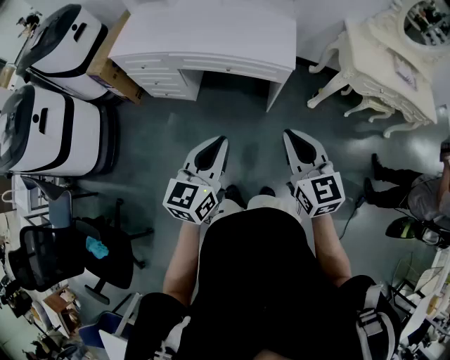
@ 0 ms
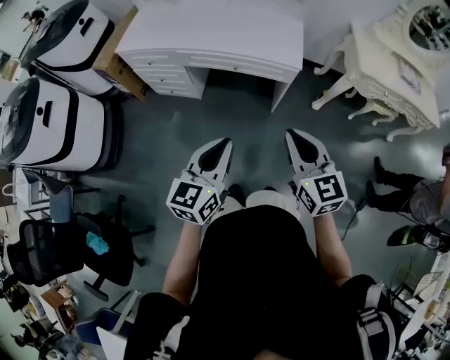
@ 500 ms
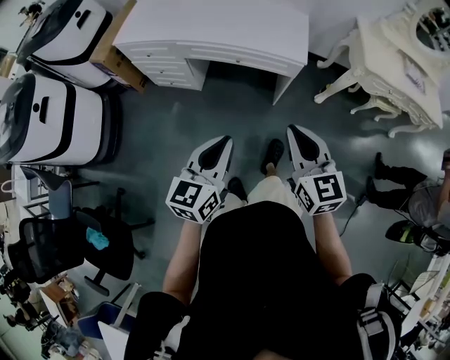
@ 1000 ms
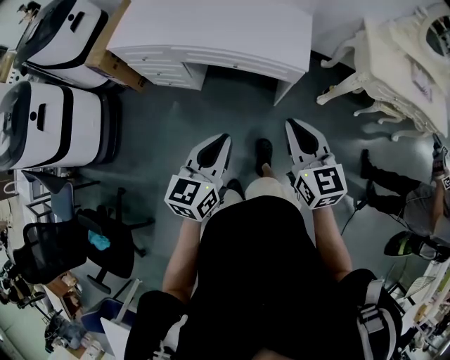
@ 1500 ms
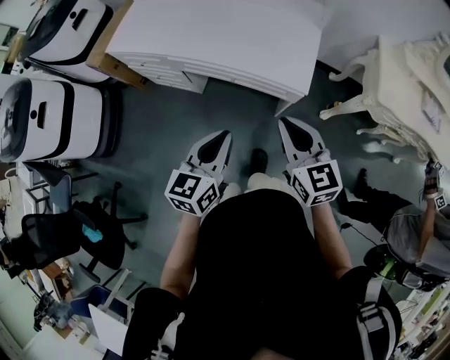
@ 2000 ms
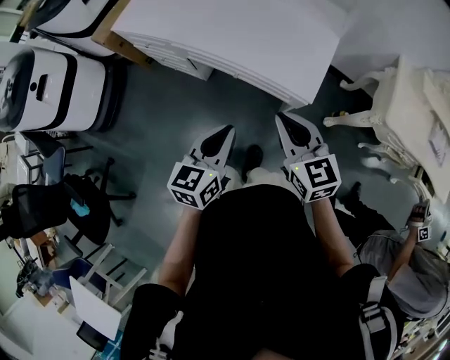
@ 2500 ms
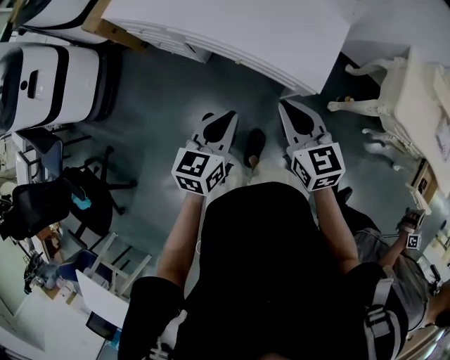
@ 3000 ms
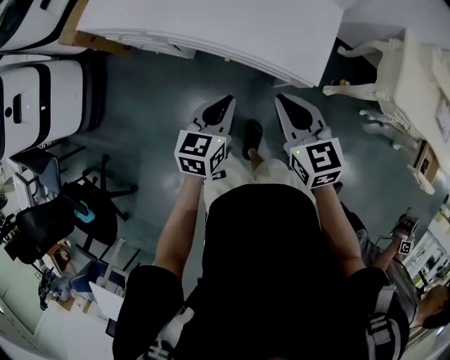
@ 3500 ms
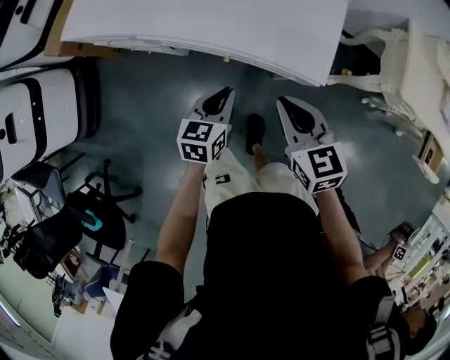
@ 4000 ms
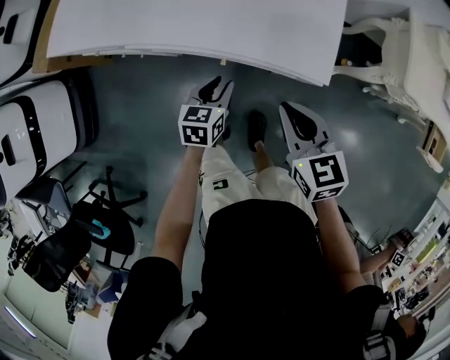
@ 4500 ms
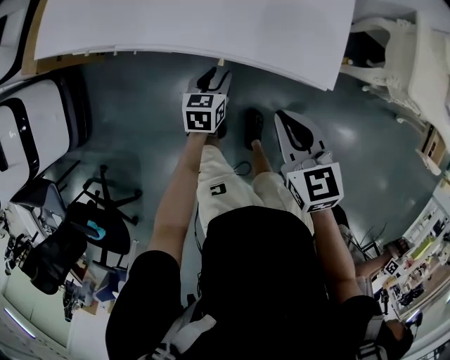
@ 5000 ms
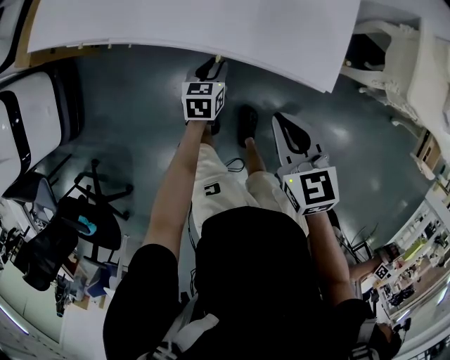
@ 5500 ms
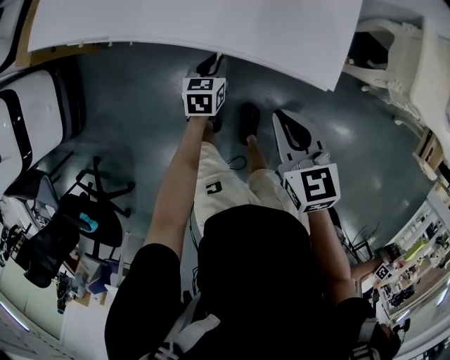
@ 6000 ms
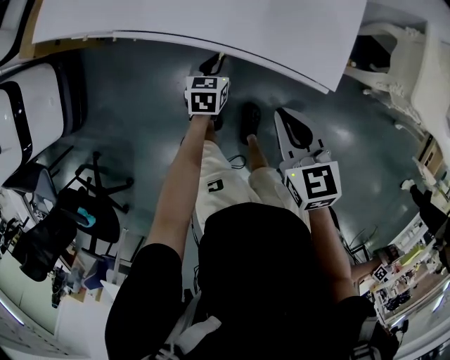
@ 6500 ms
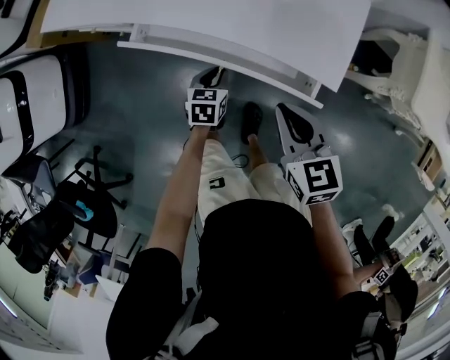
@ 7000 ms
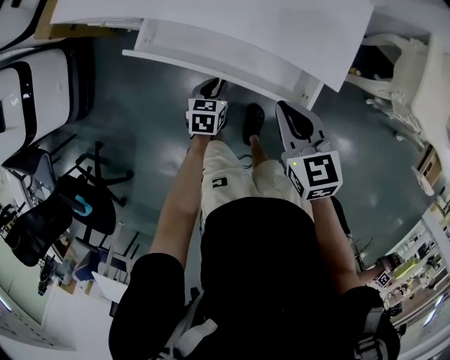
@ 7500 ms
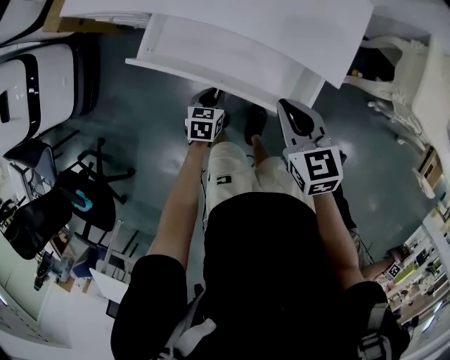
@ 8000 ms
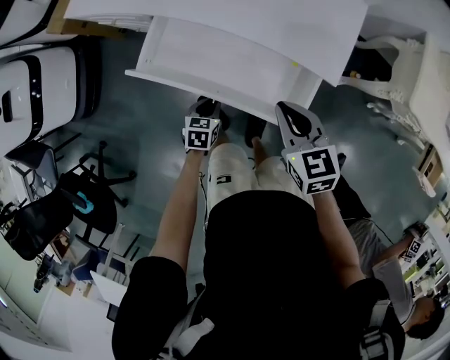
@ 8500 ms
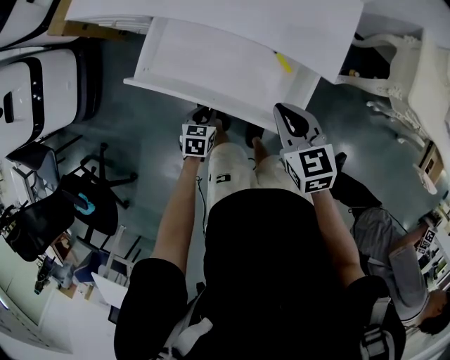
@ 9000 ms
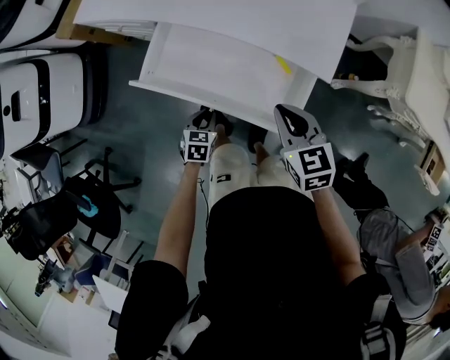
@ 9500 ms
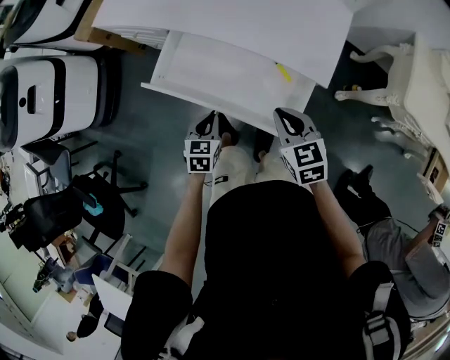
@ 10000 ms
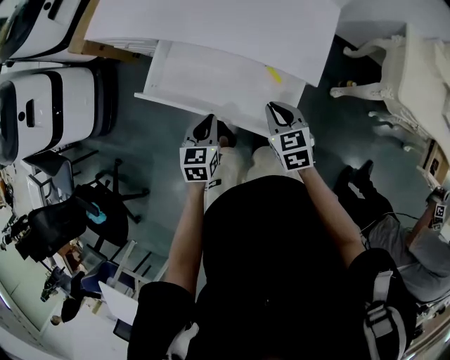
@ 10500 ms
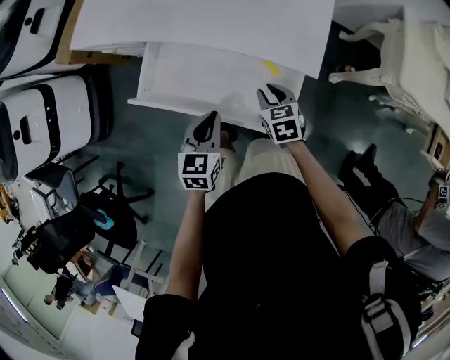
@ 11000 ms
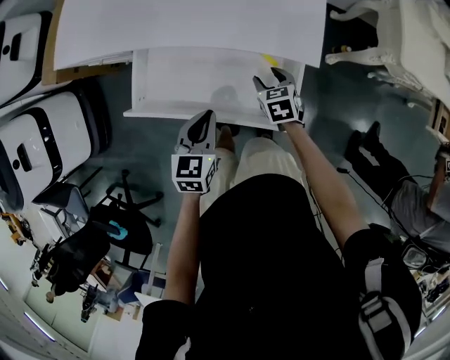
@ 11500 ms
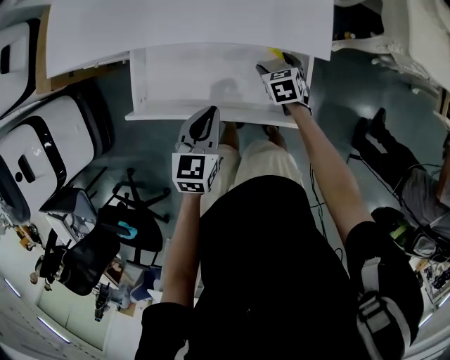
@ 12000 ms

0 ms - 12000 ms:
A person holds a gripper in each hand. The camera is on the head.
0 ms - 2000 ms: The two grippers go some 25 cm forward.
2000 ms - 4000 ms: The right gripper heads forward and downward, covering some 20 cm; the left gripper moves downward and forward, about 30 cm.
4000 ms - 6000 ms: The right gripper moves downward, roughly 10 cm; the left gripper shifts about 20 cm downward and forward.
6000 ms - 8000 ms: The left gripper goes some 15 cm backward.
8000 ms - 10000 ms: The right gripper is displaced backward by approximately 5 cm; the left gripper moves upward and backward, some 15 cm.
10000 ms - 12000 ms: The left gripper moves forward and upward, approximately 10 cm, and changes its angle by about 20 degrees. Meanwhile the right gripper travels downward and forward by some 25 cm, changes its angle by some 30 degrees, and opens.

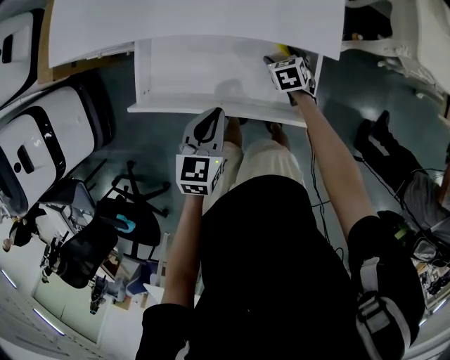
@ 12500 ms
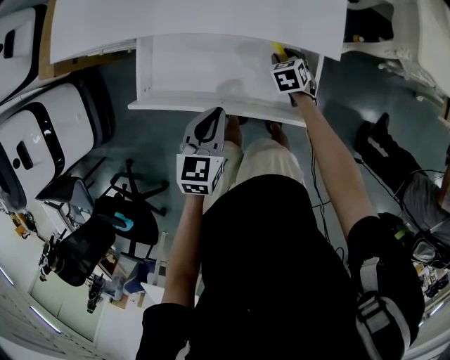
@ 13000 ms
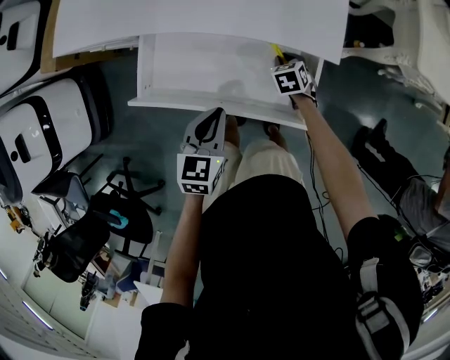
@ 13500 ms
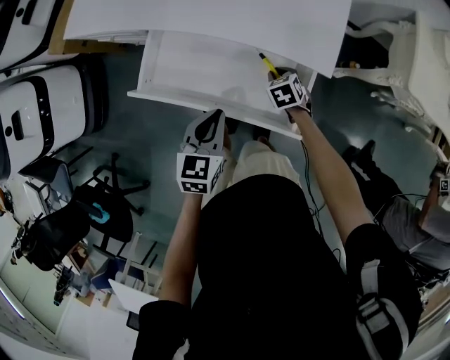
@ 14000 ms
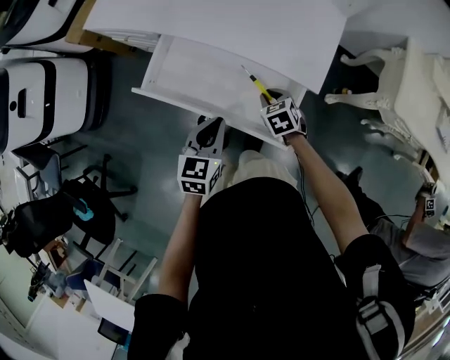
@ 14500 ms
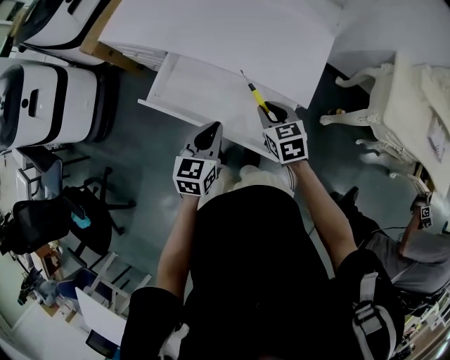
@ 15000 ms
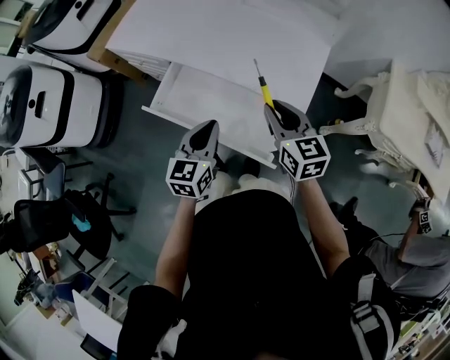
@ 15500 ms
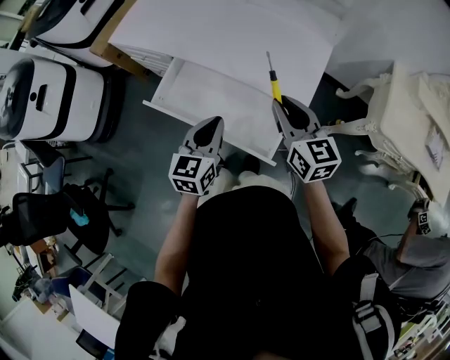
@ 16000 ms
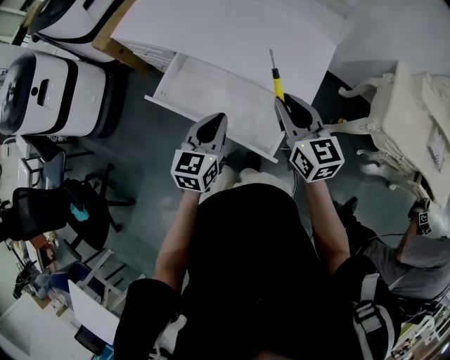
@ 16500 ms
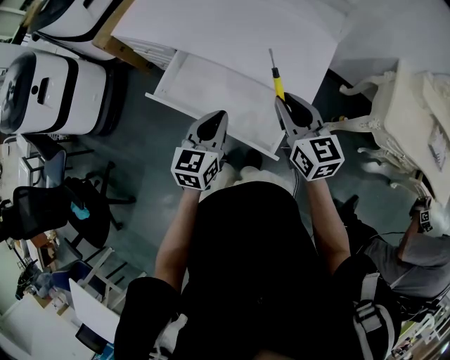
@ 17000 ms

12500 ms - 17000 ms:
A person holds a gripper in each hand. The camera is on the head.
12500 ms - 14500 ms: The right gripper heads upward and backward, covering roughly 15 cm, changes its angle by roughly 20 degrees, and closes up, while the left gripper moves upward, some 5 cm.
14500 ms - 17000 ms: The right gripper shifts approximately 30 cm upward, and tips its fingers upward by about 40 degrees. The left gripper goes approximately 10 cm upward.

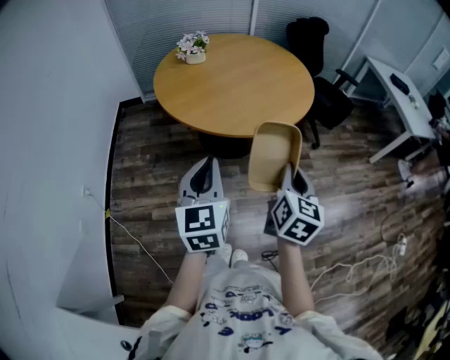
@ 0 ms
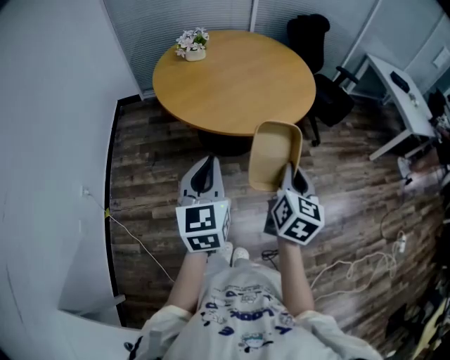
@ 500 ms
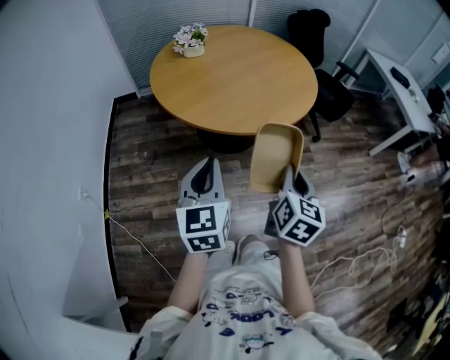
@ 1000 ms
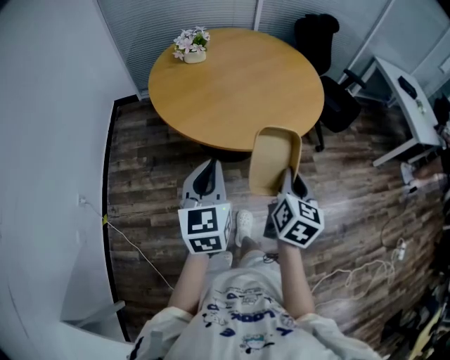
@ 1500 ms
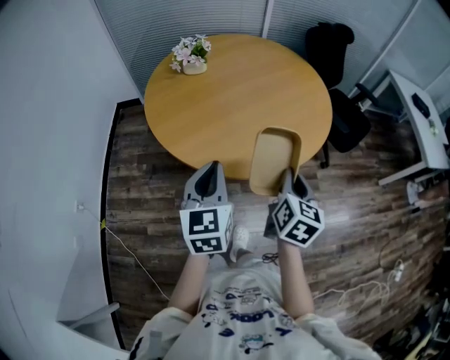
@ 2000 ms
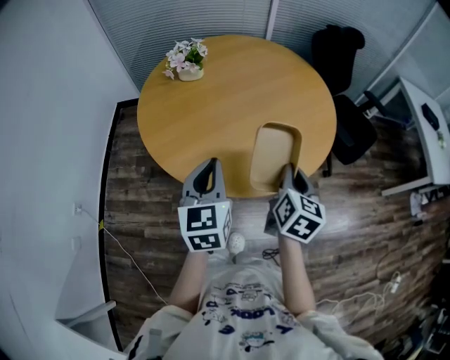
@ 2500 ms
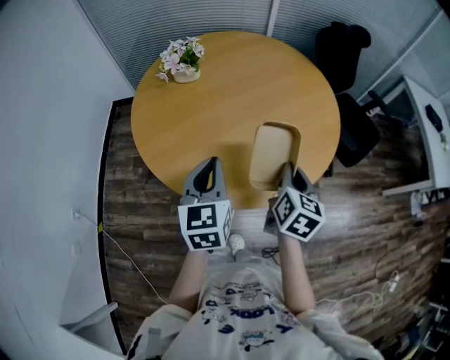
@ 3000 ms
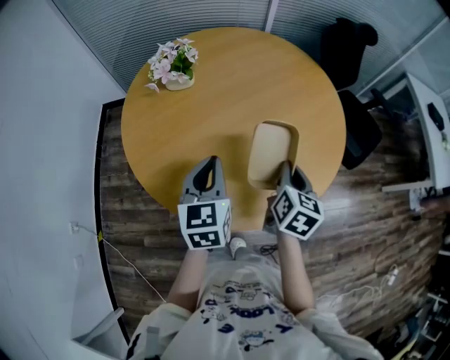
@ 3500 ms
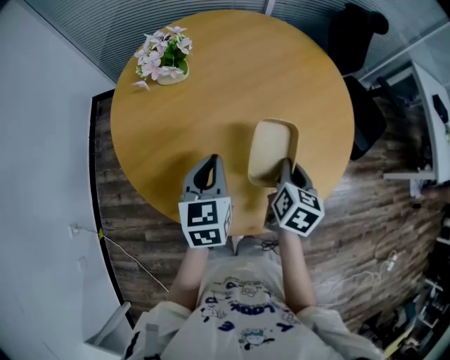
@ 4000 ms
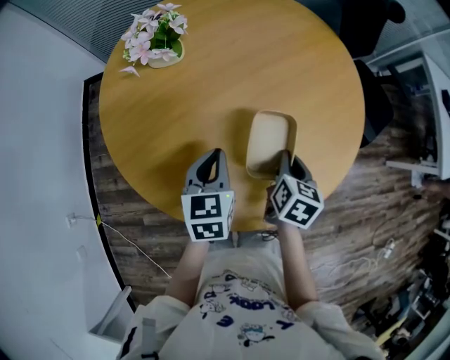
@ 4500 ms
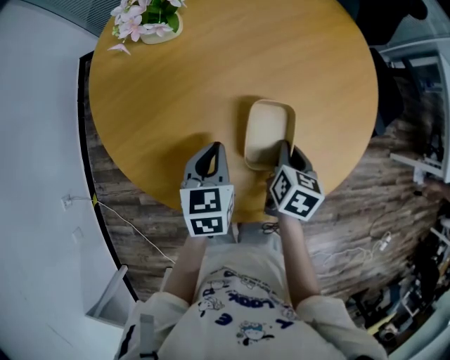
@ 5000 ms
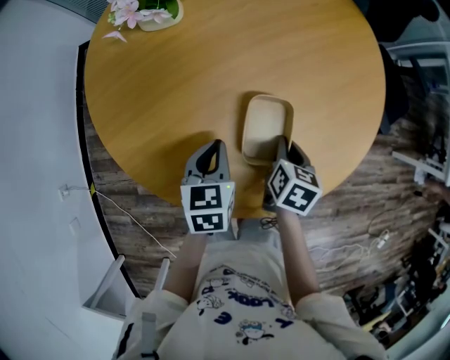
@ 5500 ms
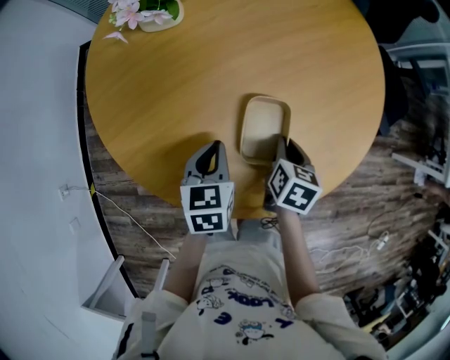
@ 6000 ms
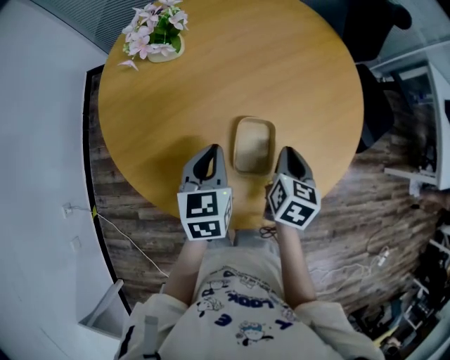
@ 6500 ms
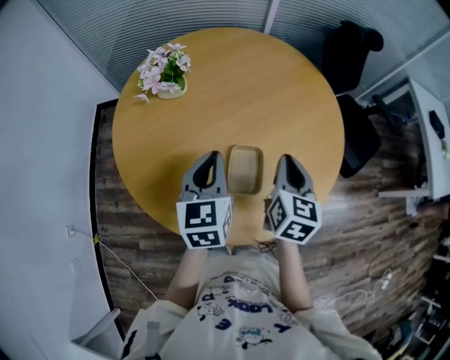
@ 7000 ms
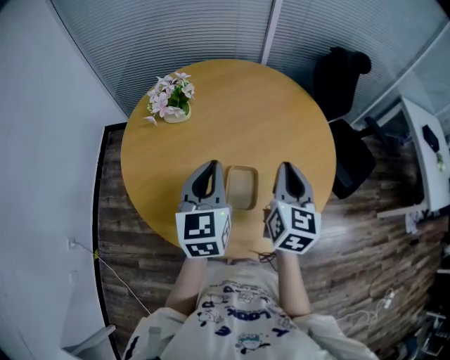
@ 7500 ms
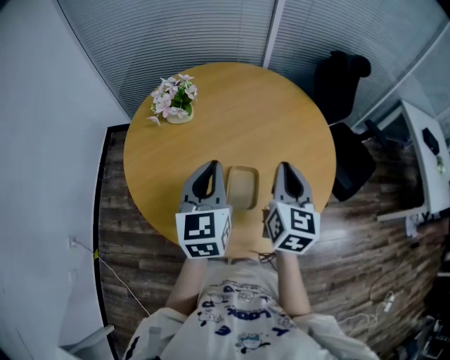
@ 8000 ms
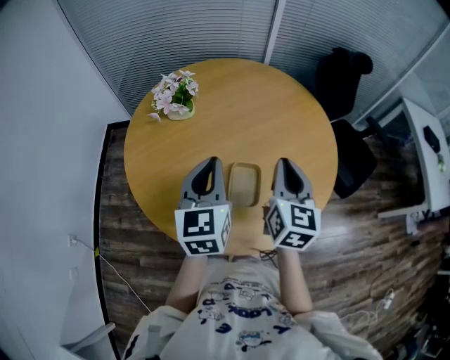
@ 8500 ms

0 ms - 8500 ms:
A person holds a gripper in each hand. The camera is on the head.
0 ms - 2000 ms: Both grippers travel together forward, approximately 25 cm.
2000 ms - 4000 ms: The grippers both shift forward by some 30 cm.
4000 ms - 6500 ms: The left gripper goes downward and returns, some 15 cm each way. Meanwhile the right gripper travels downward and back again, about 15 cm each way.
6500 ms - 8500 ms: Both grippers travel together upward, some 20 cm. The right gripper swivels approximately 30 degrees. The left gripper rotates approximately 20 degrees.

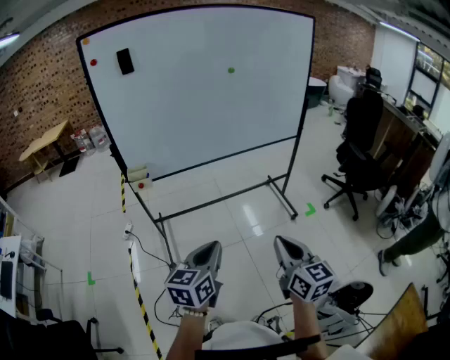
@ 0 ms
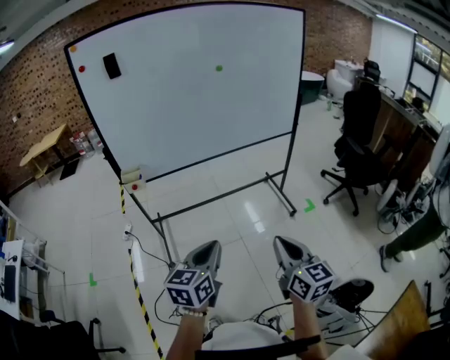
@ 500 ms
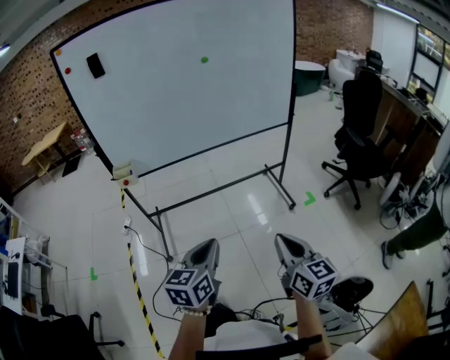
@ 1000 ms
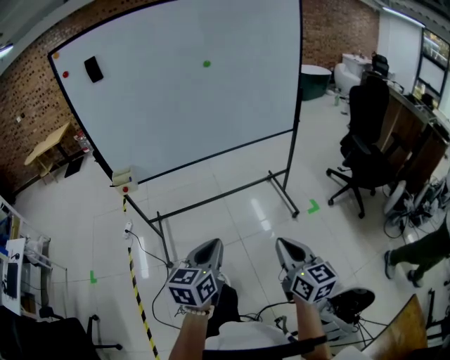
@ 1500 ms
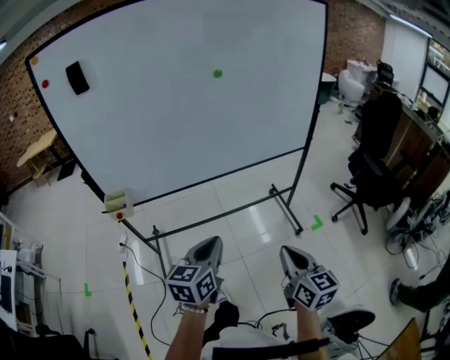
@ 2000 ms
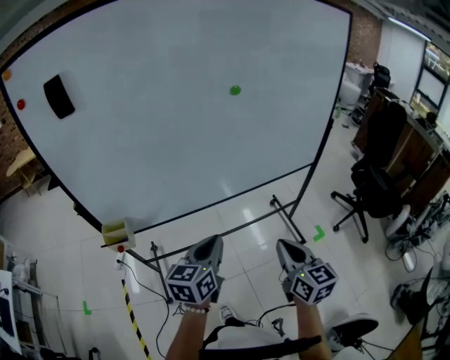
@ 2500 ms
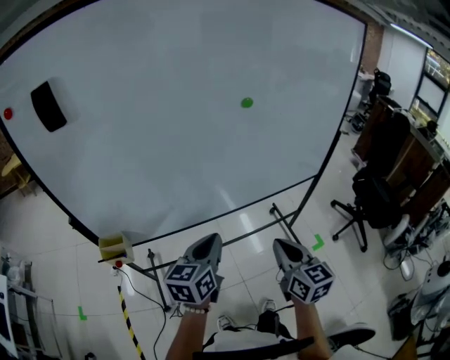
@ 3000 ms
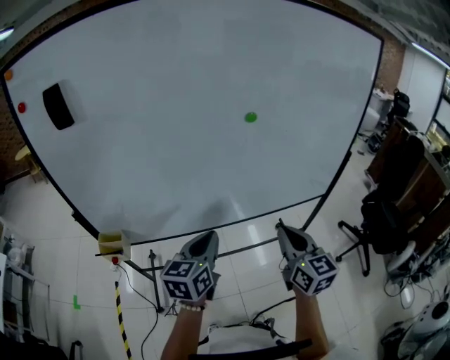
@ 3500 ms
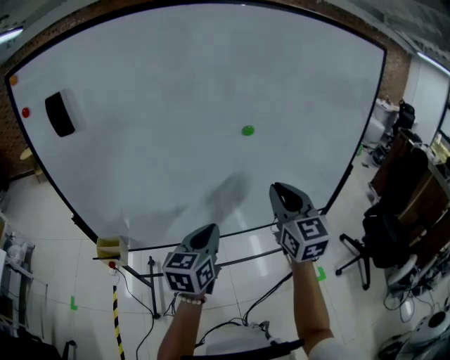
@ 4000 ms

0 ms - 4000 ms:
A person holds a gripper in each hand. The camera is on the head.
0 ms - 2000 ms: The left gripper shifts about 25 cm forward, while the right gripper shifts approximately 25 cm forward and to the right.
2000 ms - 4000 ms: The left gripper heads forward, covering about 30 cm; the right gripper moves forward and upward, about 50 cm, and swivels about 30 degrees.